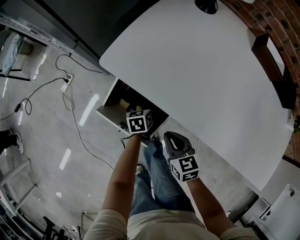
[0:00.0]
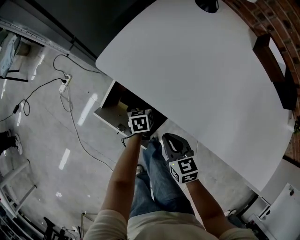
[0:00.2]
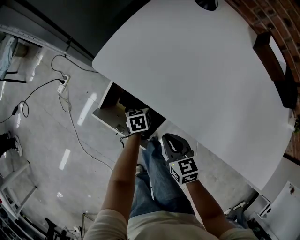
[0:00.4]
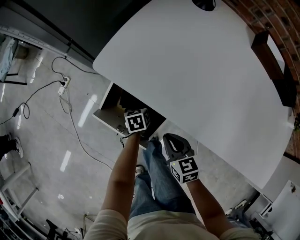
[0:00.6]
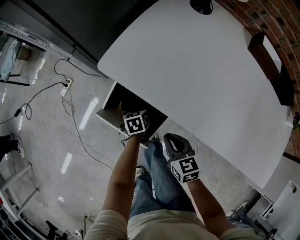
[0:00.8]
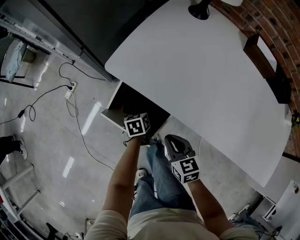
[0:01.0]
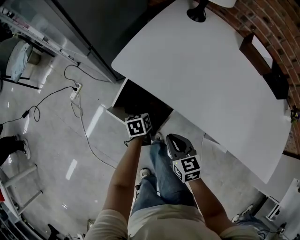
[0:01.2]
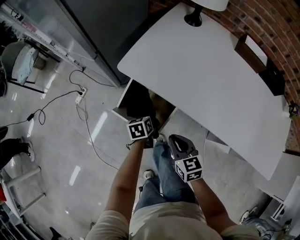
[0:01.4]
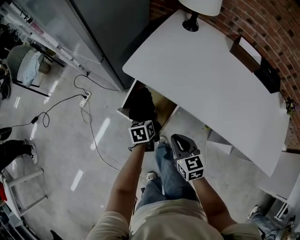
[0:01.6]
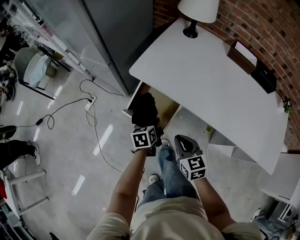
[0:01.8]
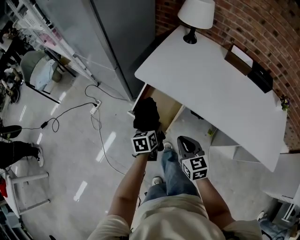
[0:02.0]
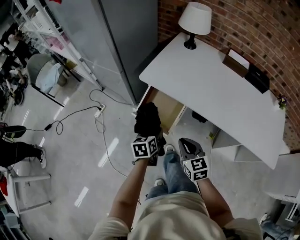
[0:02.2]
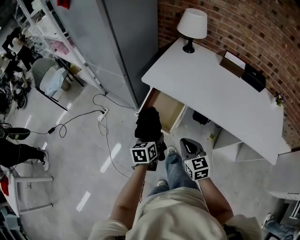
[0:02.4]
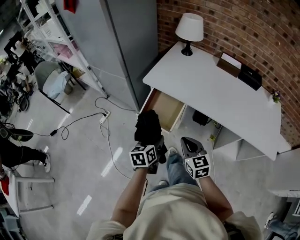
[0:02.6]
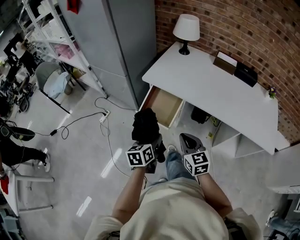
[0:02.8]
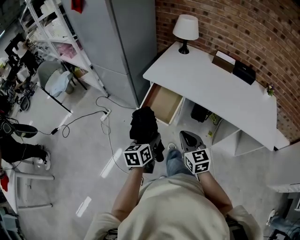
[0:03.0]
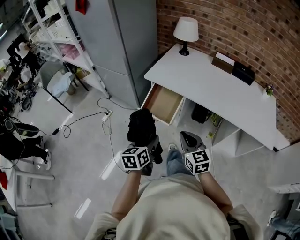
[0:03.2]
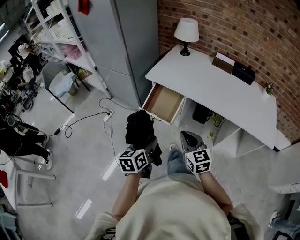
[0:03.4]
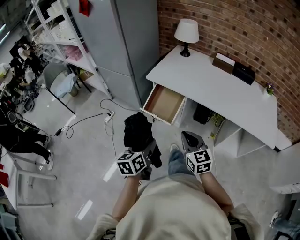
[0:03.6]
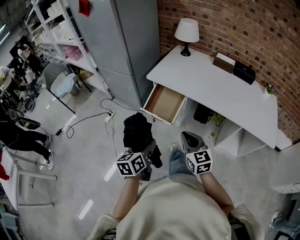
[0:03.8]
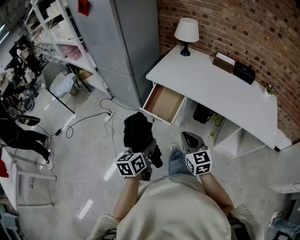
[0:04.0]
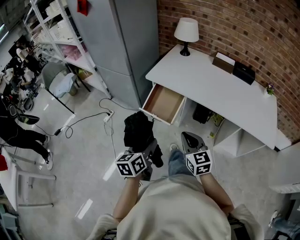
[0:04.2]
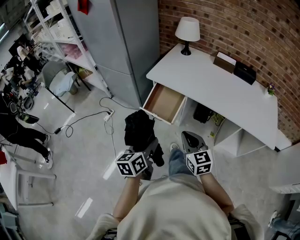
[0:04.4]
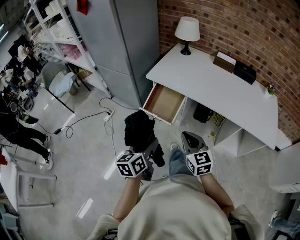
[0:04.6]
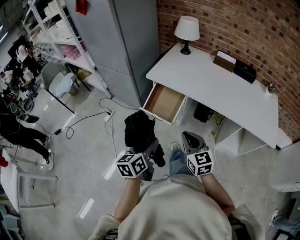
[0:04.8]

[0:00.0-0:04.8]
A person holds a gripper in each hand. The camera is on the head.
0.0 to 1.6 s: The grippers both shift upward and backward by roughly 15 cm. The left gripper closes.
1.6 to 3.2 s: Both grippers move backward and upward, approximately 35 cm. The left gripper rotates approximately 20 degrees.
3.2 to 4.8 s: The grippers make only small movements.

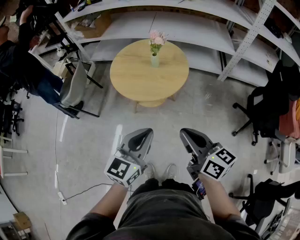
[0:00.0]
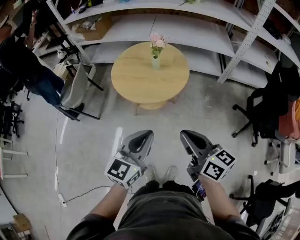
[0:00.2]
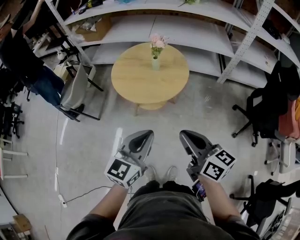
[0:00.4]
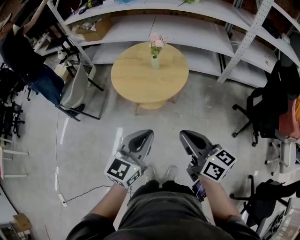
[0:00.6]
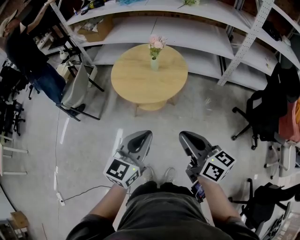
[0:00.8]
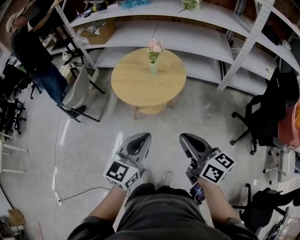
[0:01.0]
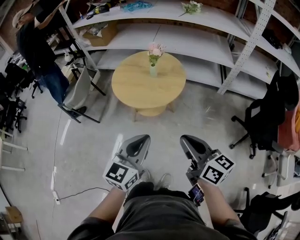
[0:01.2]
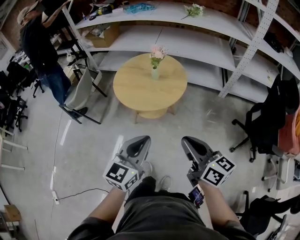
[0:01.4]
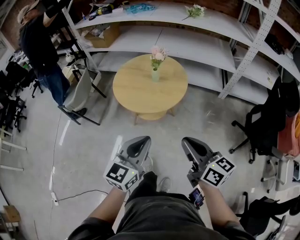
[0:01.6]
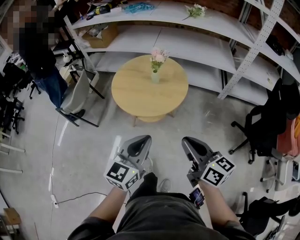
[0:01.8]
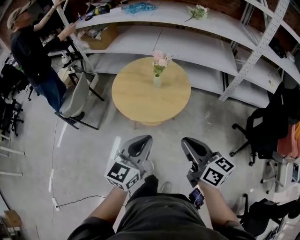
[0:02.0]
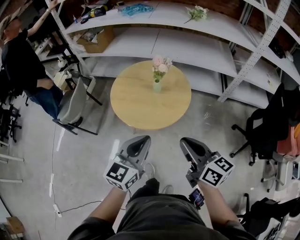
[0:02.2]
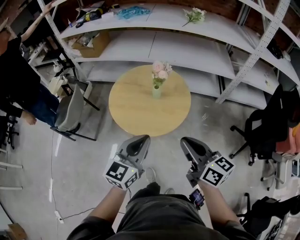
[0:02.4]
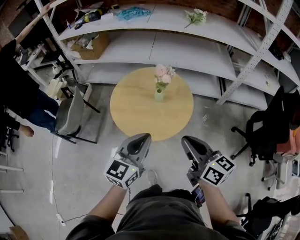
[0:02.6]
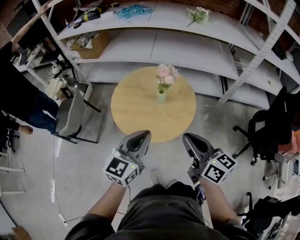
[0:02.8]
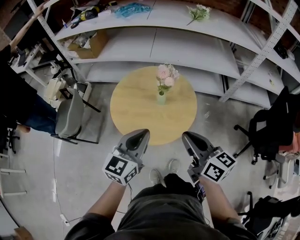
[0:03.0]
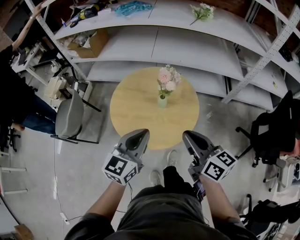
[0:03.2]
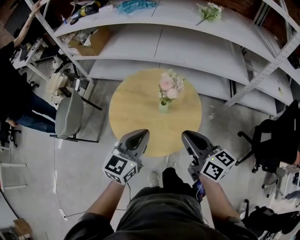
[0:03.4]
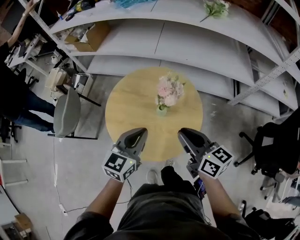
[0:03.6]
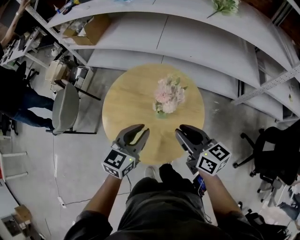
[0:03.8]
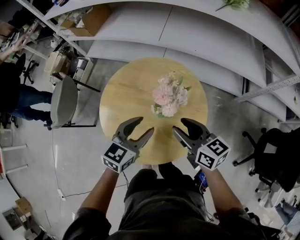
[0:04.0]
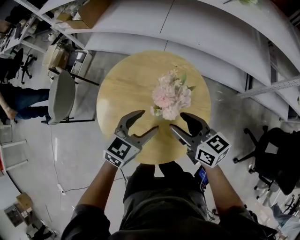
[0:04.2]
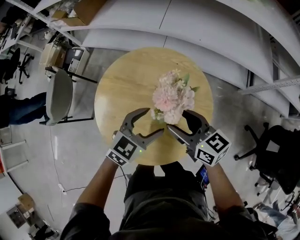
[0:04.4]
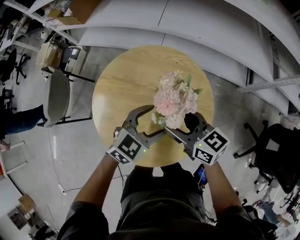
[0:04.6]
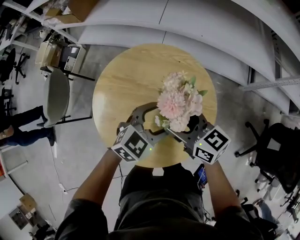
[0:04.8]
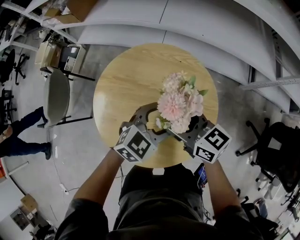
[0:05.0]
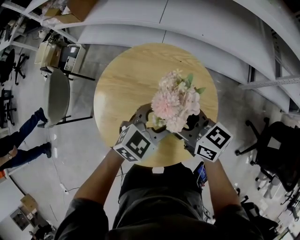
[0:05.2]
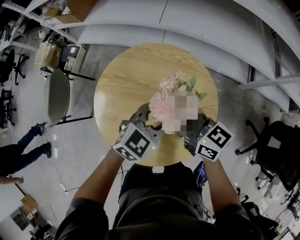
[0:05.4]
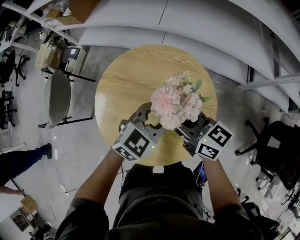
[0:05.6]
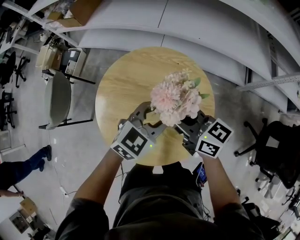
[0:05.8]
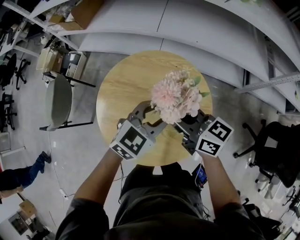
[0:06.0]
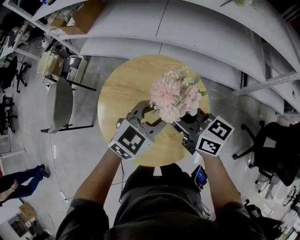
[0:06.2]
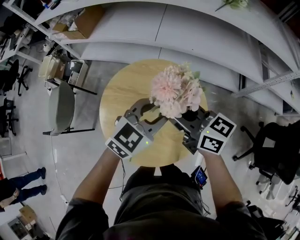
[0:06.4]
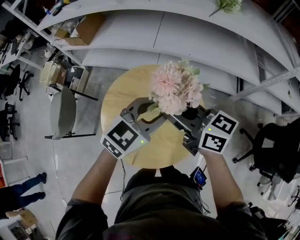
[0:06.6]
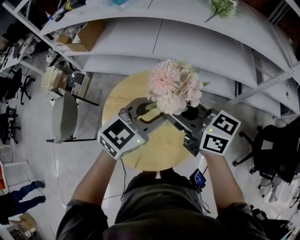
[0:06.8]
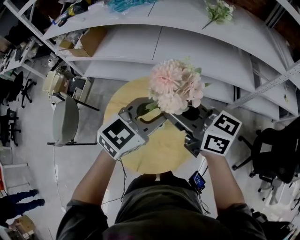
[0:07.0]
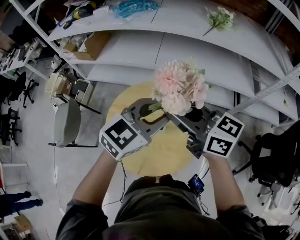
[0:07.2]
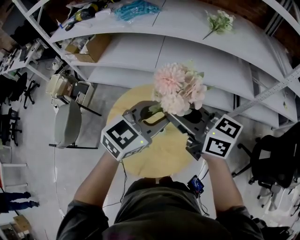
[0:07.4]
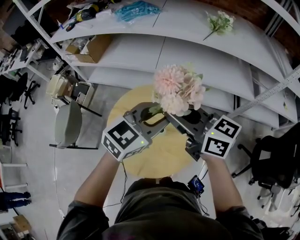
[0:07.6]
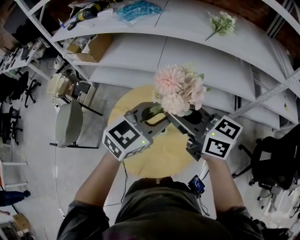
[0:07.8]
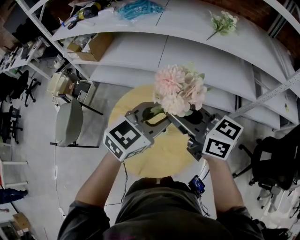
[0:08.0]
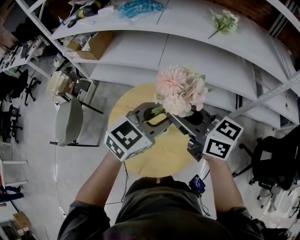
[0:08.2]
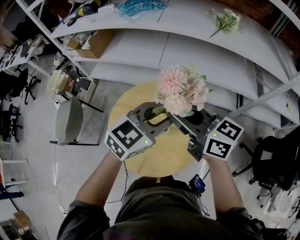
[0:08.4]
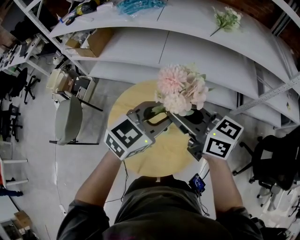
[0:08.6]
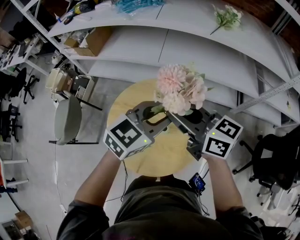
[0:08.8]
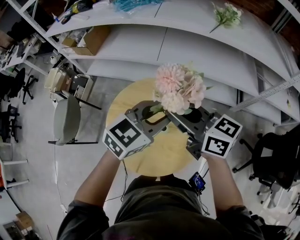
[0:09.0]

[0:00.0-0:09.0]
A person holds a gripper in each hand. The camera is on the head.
0.0 to 1.6 s: The right gripper moves approximately 5 cm.
1.6 to 3.0 s: The two grippers go about 25 cm forward.
3.0 to 4.4 s: The grippers both shift forward and downward by some 30 cm. The left gripper swivels some 30 degrees, and opens. The right gripper rotates roughly 20 degrees, and opens.
4.4 to 6.0 s: Both grippers travel together upward, roughly 5 cm. The right gripper closes up, while the left gripper closes its fingers.
6.0 to 7.6 s: The grippers both shift upward by approximately 20 cm.
7.6 to 9.0 s: The grippers move only a little.

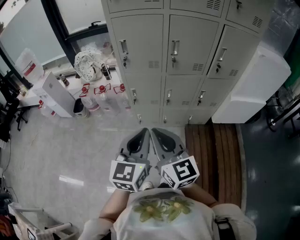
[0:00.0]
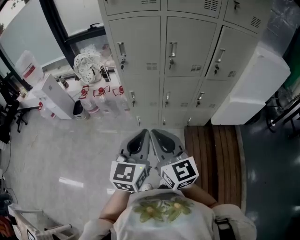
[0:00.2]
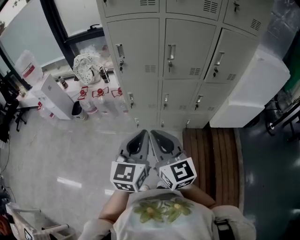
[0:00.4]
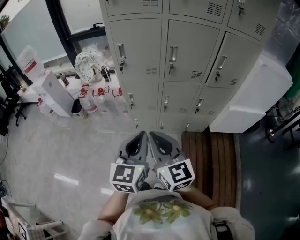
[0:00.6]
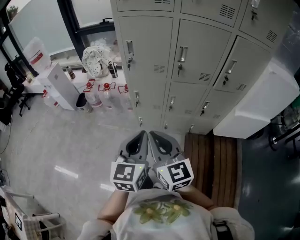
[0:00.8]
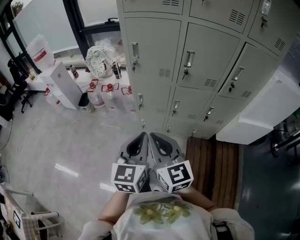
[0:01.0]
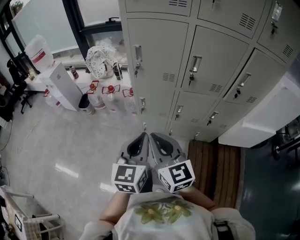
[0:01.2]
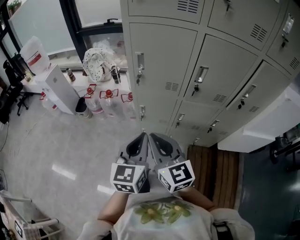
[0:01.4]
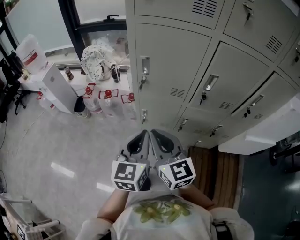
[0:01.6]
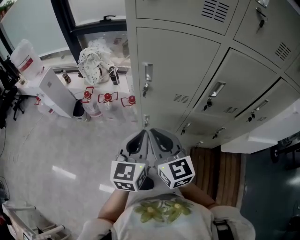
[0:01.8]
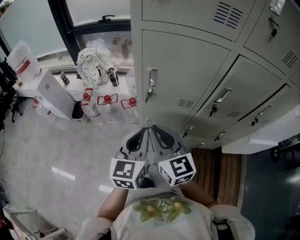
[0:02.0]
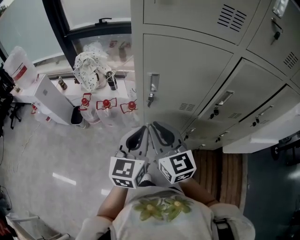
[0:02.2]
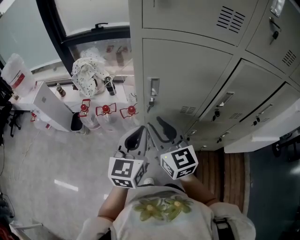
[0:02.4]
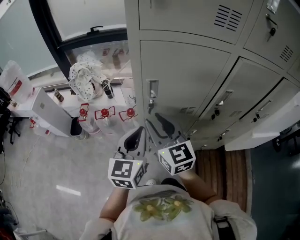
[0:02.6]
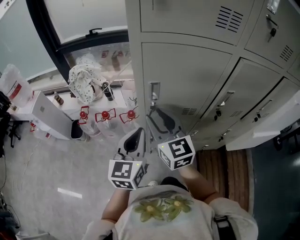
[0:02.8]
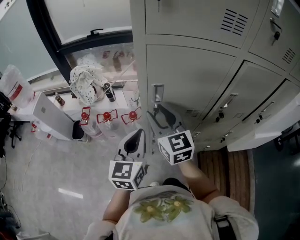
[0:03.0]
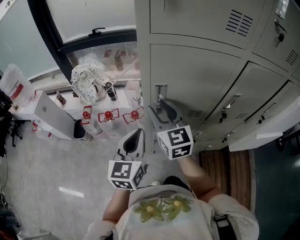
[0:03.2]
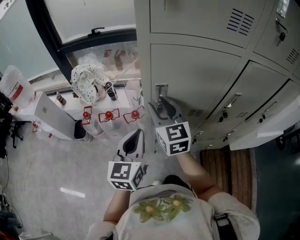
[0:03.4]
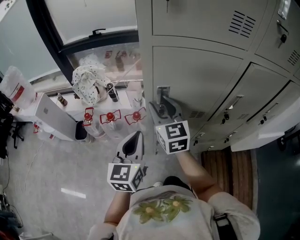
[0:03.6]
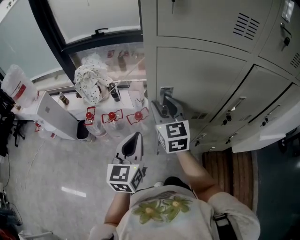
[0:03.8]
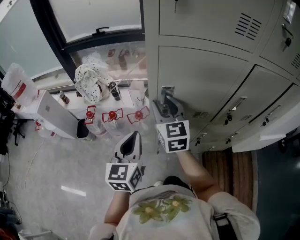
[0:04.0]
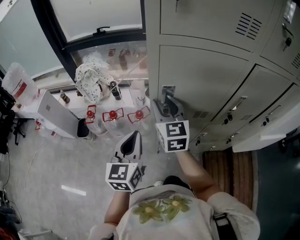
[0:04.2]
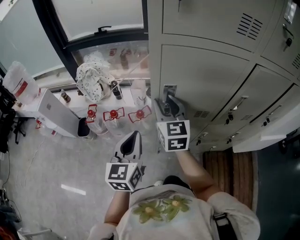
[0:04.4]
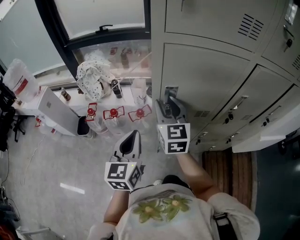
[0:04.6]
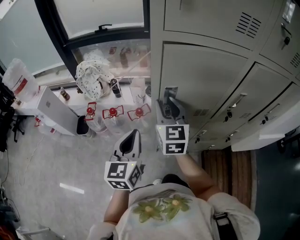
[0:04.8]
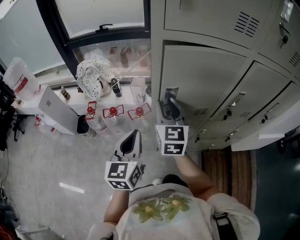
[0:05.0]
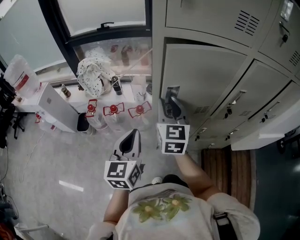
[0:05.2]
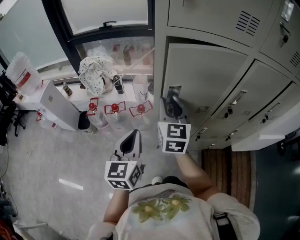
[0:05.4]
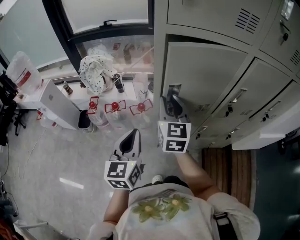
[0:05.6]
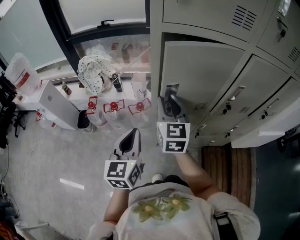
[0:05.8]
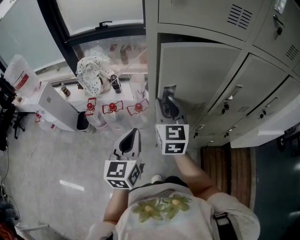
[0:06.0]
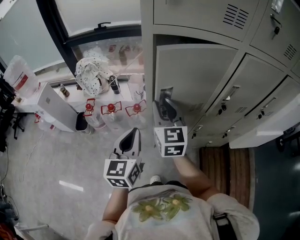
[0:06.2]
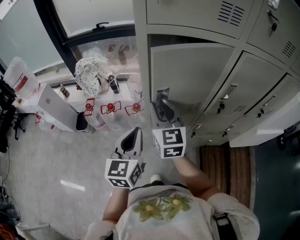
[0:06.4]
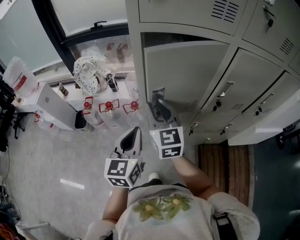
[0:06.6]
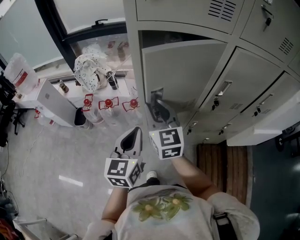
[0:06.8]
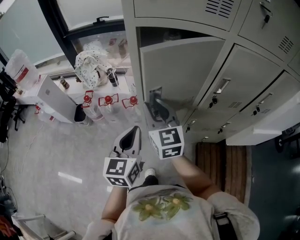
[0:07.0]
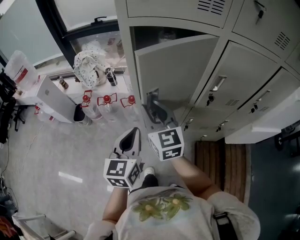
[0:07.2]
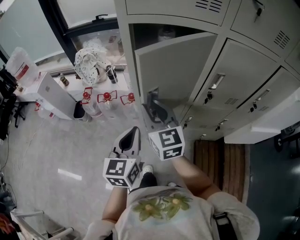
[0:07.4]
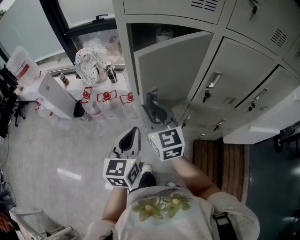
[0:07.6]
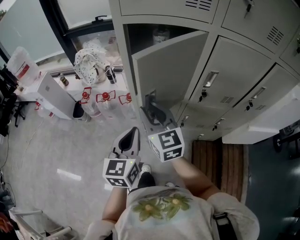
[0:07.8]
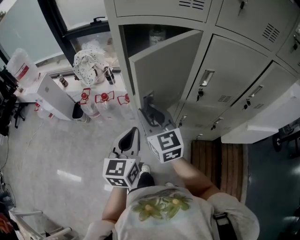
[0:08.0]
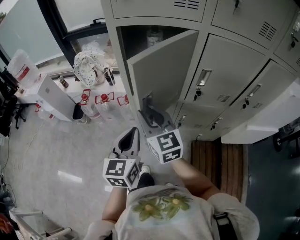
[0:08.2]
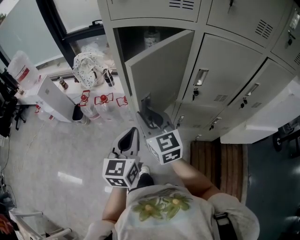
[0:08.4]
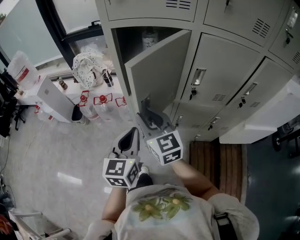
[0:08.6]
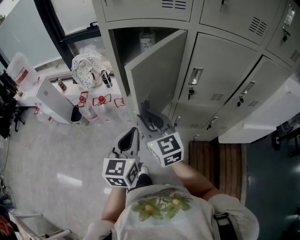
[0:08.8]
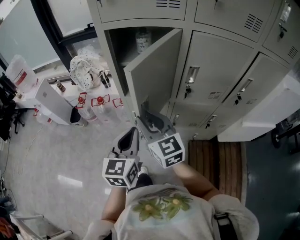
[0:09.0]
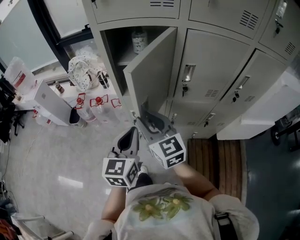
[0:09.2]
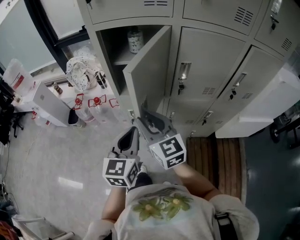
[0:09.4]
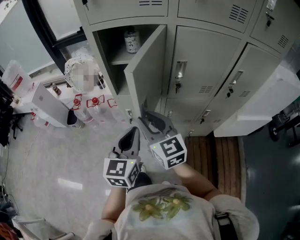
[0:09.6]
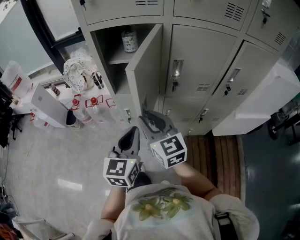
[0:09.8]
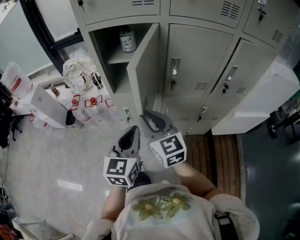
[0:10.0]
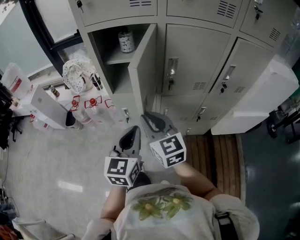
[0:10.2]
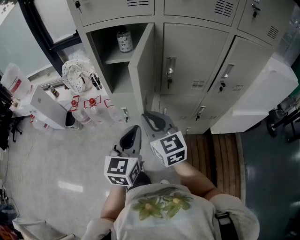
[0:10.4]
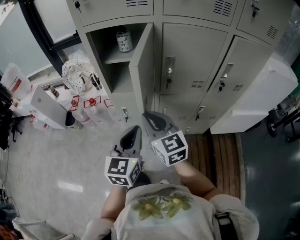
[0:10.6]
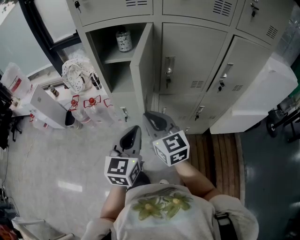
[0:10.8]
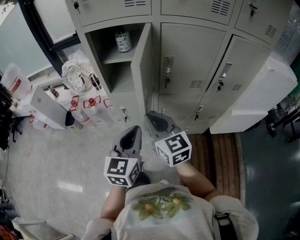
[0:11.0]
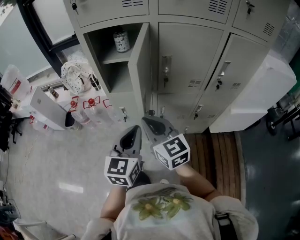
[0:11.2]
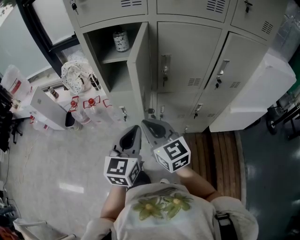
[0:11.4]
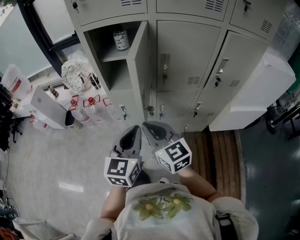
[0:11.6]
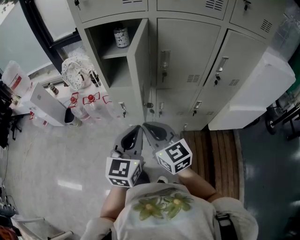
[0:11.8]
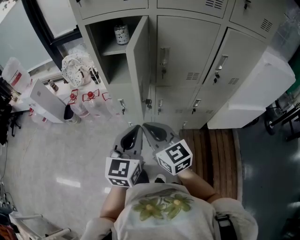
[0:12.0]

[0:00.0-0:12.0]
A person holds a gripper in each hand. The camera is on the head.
0.0 to 1.6 s: Both grippers travel together forward, approximately 25 cm.
1.6 to 3.0 s: The left gripper travels forward and to the left by some 20 cm. The right gripper goes approximately 25 cm forward, and opens its fingers.
3.0 to 4.4 s: The left gripper is displaced to the left by about 5 cm. The right gripper goes approximately 5 cm forward.
4.4 to 6.0 s: The right gripper travels backward by about 5 cm.
6.0 to 7.6 s: The right gripper goes about 10 cm backward; the left gripper goes some 10 cm to the right and backward.
7.6 to 9.0 s: The right gripper moves backward, about 5 cm. Meanwhile the left gripper is displaced to the right by some 5 cm.
9.0 to 10.4 s: Both grippers travel together to the right and backward, some 10 cm.
10.4 to 12.0 s: The right gripper is displaced backward by some 10 cm; the left gripper is displaced backward by about 5 cm.
